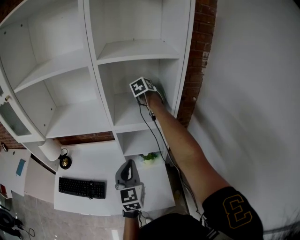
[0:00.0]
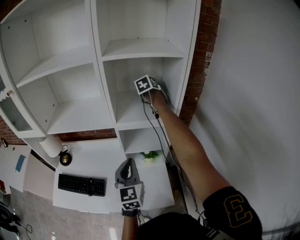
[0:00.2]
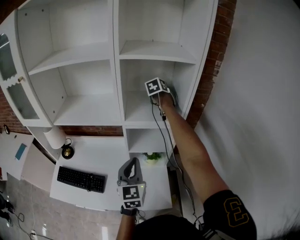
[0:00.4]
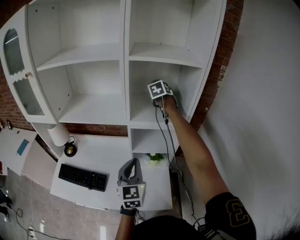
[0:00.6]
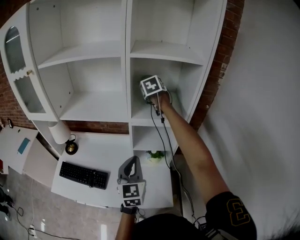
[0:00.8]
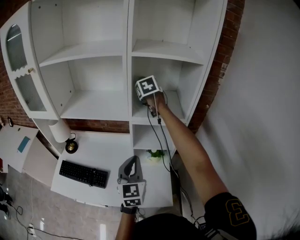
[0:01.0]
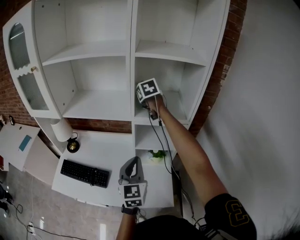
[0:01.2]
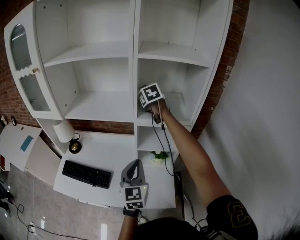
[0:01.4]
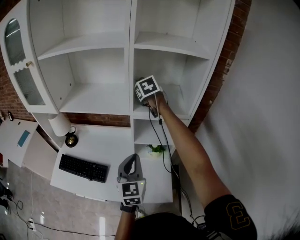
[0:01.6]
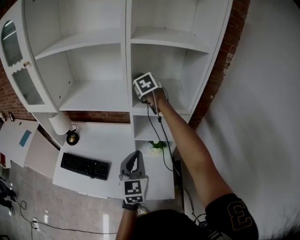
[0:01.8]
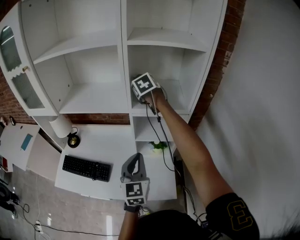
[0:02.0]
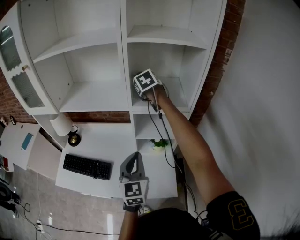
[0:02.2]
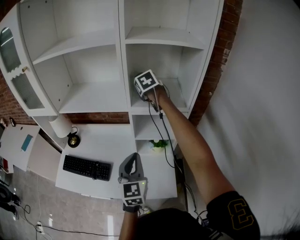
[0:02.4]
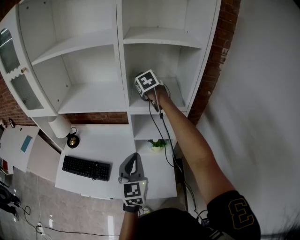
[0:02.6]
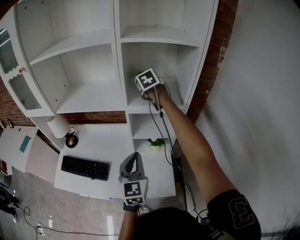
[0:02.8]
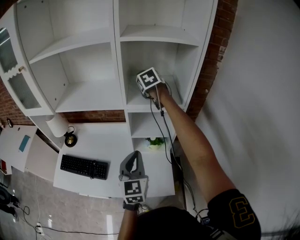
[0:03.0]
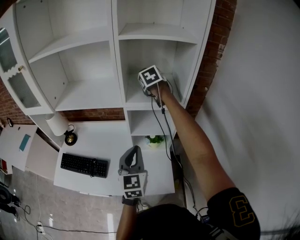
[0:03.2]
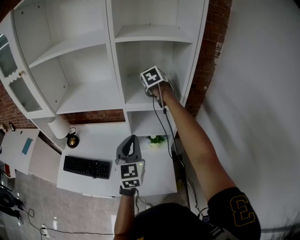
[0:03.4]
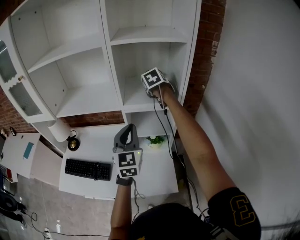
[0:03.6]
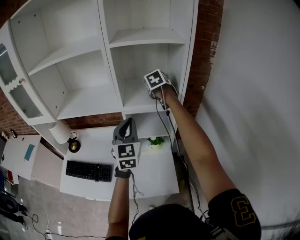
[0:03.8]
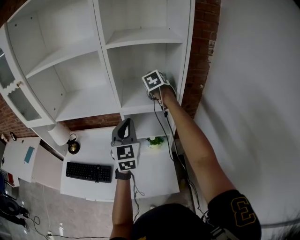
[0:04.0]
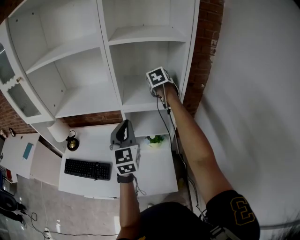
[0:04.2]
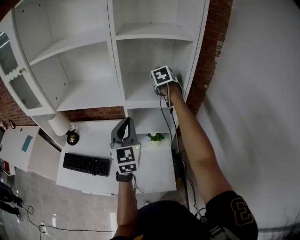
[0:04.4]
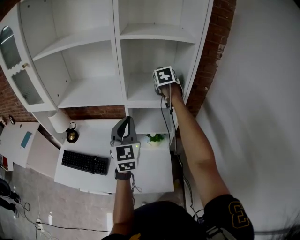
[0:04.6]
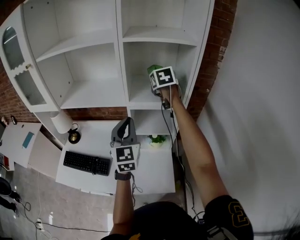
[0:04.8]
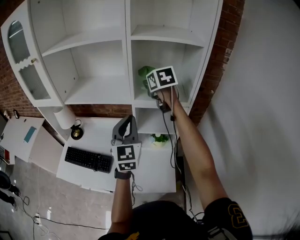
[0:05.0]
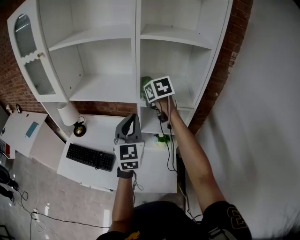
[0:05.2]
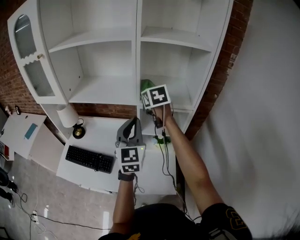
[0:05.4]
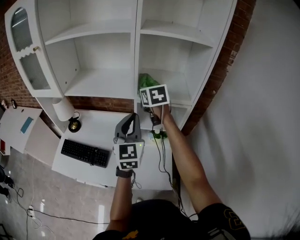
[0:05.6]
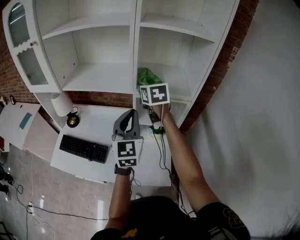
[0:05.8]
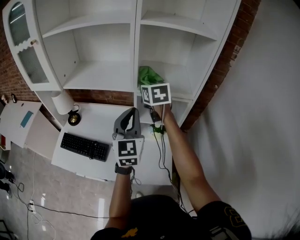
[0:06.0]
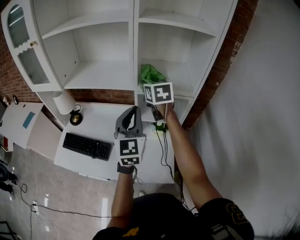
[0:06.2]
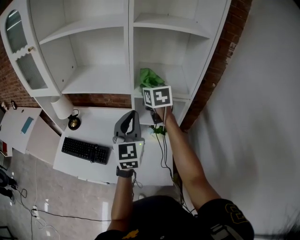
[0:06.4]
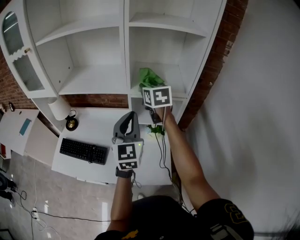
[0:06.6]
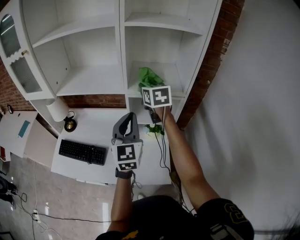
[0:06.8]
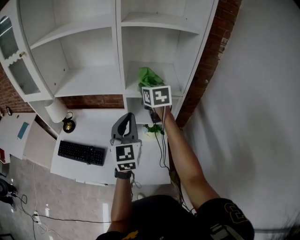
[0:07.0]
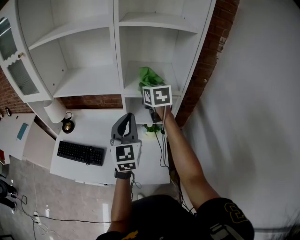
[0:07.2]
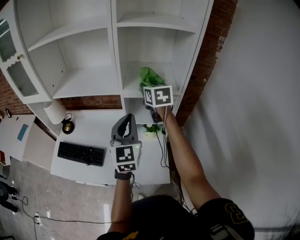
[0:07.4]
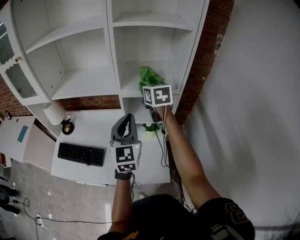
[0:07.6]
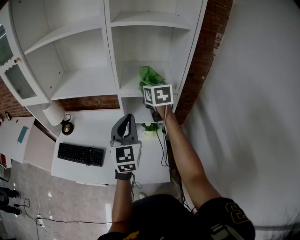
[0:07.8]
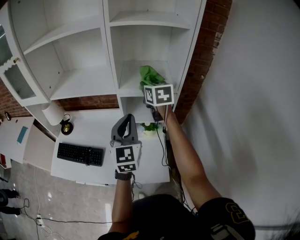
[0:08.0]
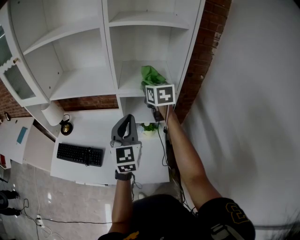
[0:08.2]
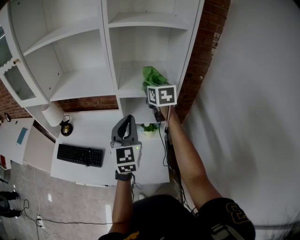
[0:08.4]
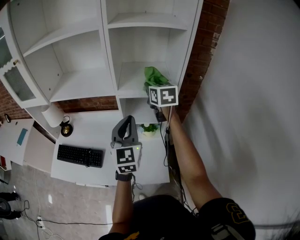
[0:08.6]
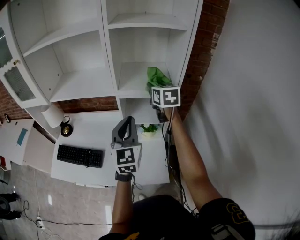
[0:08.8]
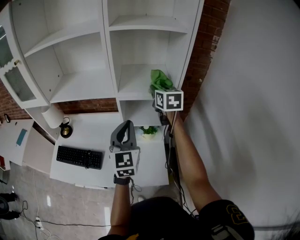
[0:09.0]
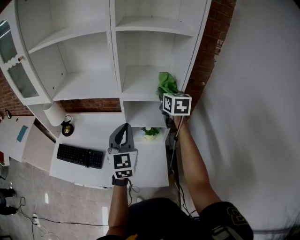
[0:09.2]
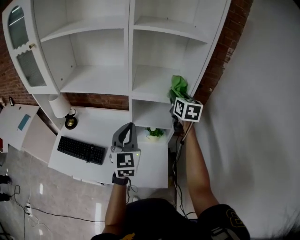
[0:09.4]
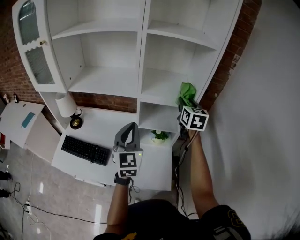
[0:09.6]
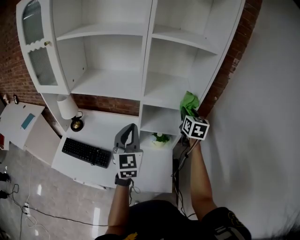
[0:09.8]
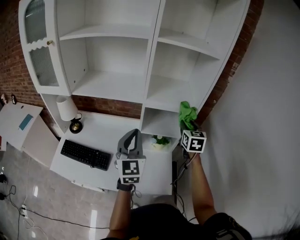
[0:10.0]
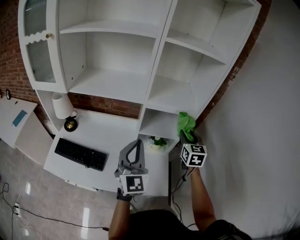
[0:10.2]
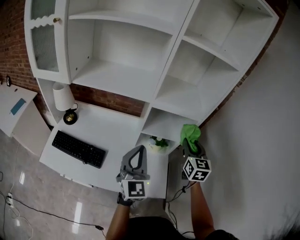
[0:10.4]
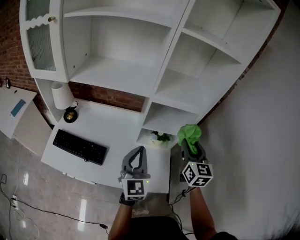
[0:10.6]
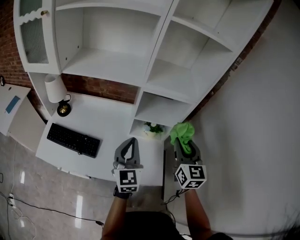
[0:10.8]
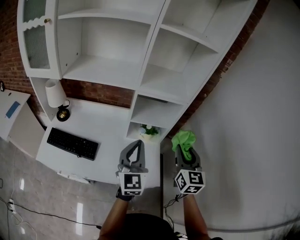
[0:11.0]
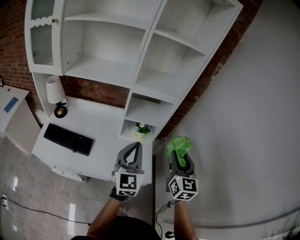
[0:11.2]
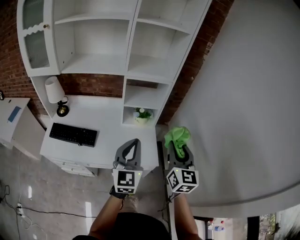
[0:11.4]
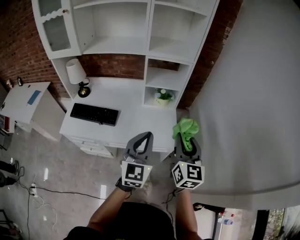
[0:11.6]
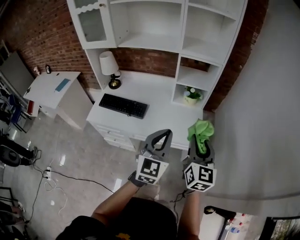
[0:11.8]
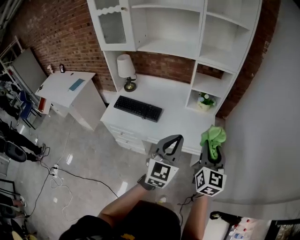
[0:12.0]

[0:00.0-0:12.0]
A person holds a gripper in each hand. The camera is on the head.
0:00.0 to 0:01.6: The right gripper shifts roughly 15 cm to the left and backward, and swivels some 20 degrees.
0:01.6 to 0:03.0: The right gripper travels to the right by roughly 5 cm.
0:03.0 to 0:04.4: The right gripper shifts some 10 cm to the right. The left gripper travels upward and forward by some 10 cm.
0:04.4 to 0:06.0: The right gripper shifts approximately 20 cm to the left and backward, and changes its angle by approximately 30 degrees.
0:06.0 to 0:07.6: The right gripper goes some 10 cm to the right.
0:07.6 to 0:09.0: The right gripper is displaced to the right by approximately 5 cm.
0:09.0 to 0:10.4: The left gripper goes roughly 10 cm to the left and backward. The right gripper heads backward and downward, covering about 15 cm.
0:10.4 to 0:12.0: The two grippers go about 35 cm backward.

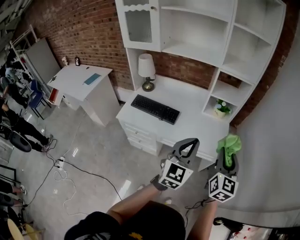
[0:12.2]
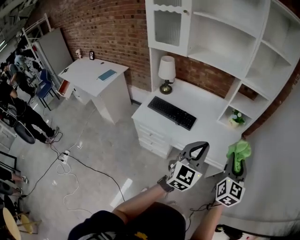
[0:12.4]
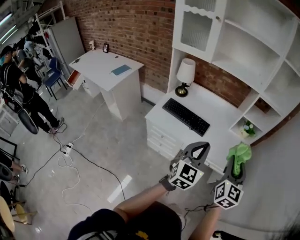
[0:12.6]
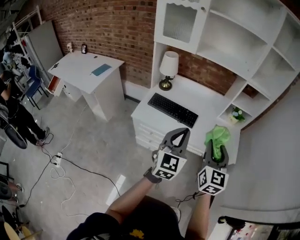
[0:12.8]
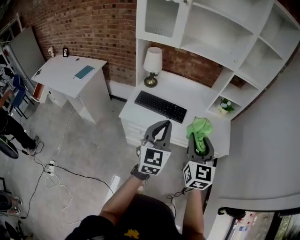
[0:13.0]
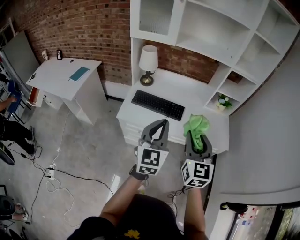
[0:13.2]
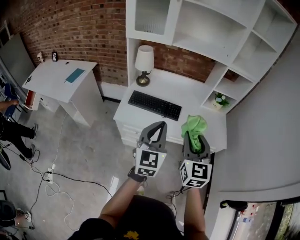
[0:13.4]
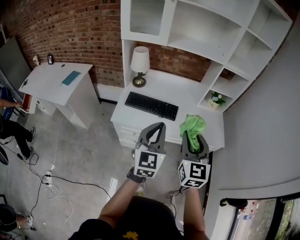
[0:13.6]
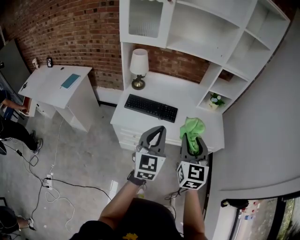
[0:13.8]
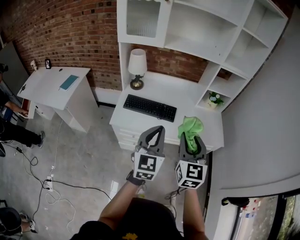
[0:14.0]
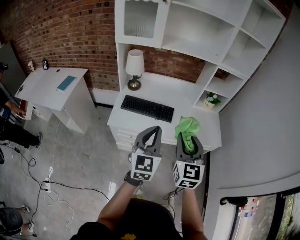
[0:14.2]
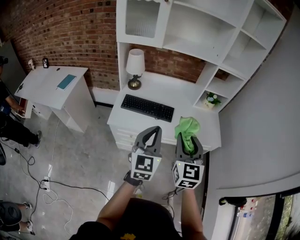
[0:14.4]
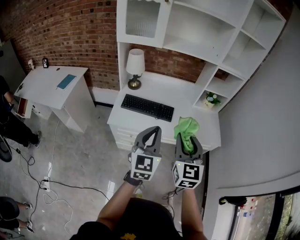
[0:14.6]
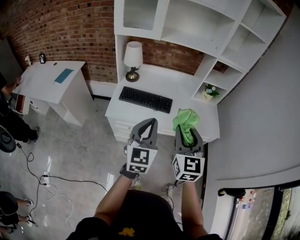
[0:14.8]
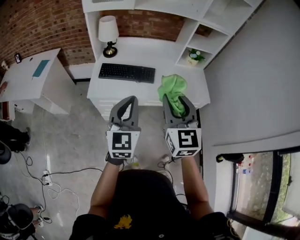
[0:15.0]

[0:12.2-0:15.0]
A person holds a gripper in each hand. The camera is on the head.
0:12.2 to 0:13.6: The grippers both shift to the left by roughly 35 cm.
0:13.6 to 0:15.0: The right gripper moves roughly 5 cm. Meanwhile the left gripper shifts roughly 5 cm to the left.

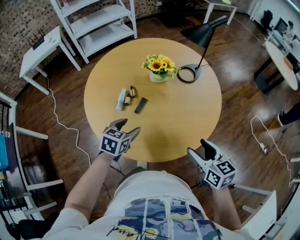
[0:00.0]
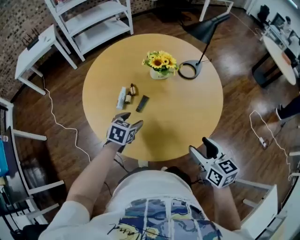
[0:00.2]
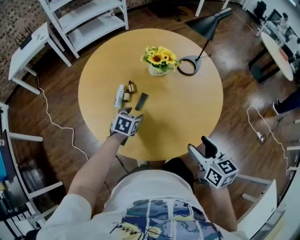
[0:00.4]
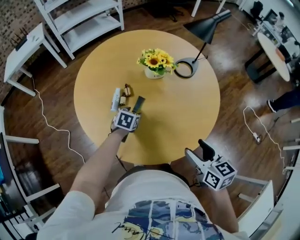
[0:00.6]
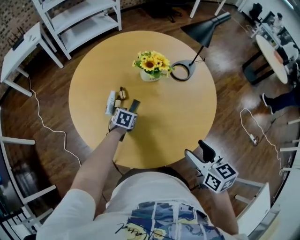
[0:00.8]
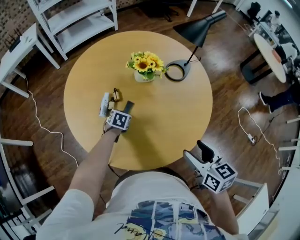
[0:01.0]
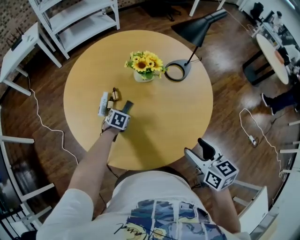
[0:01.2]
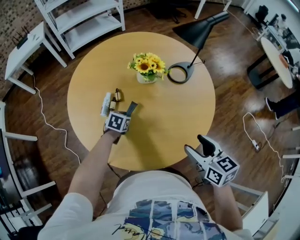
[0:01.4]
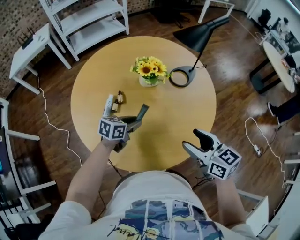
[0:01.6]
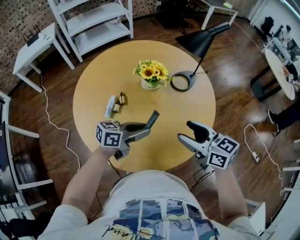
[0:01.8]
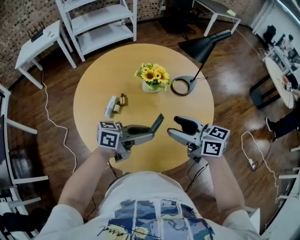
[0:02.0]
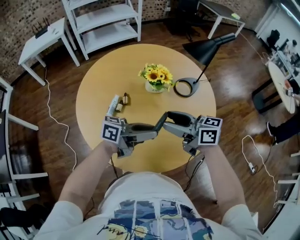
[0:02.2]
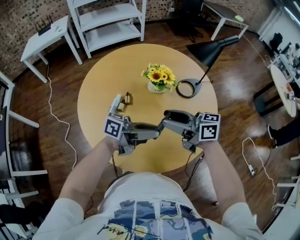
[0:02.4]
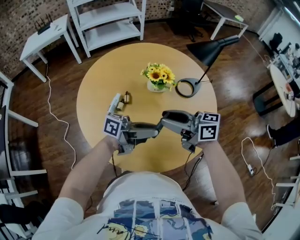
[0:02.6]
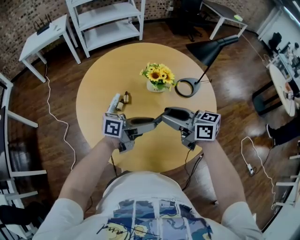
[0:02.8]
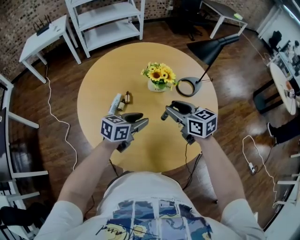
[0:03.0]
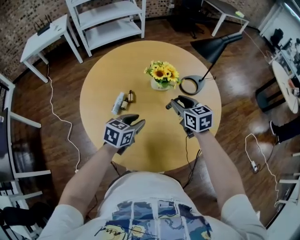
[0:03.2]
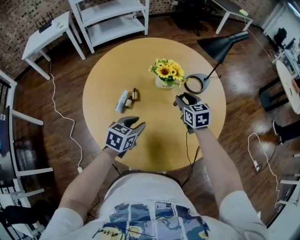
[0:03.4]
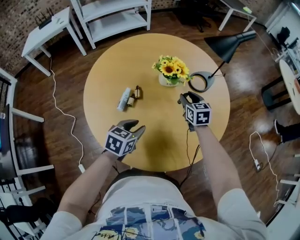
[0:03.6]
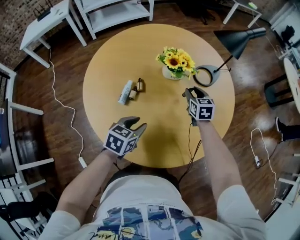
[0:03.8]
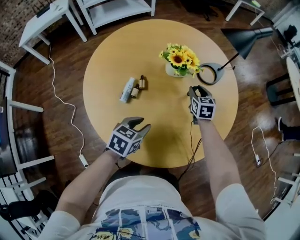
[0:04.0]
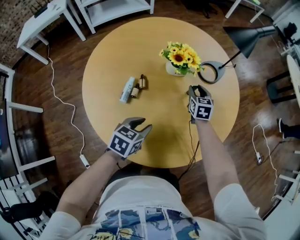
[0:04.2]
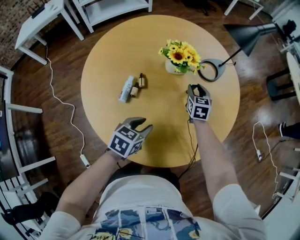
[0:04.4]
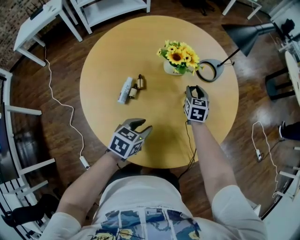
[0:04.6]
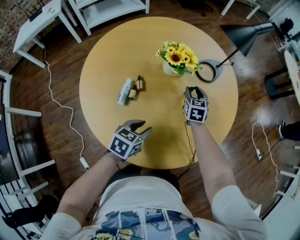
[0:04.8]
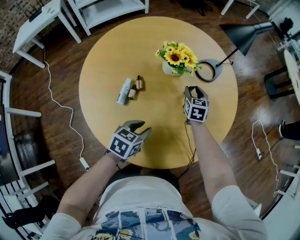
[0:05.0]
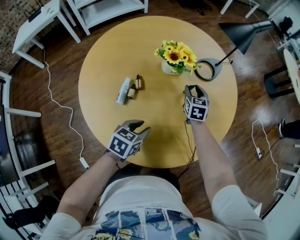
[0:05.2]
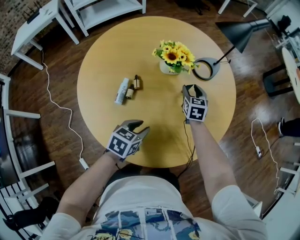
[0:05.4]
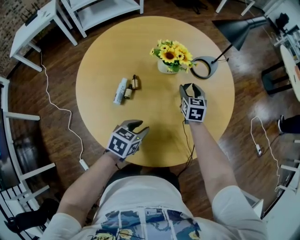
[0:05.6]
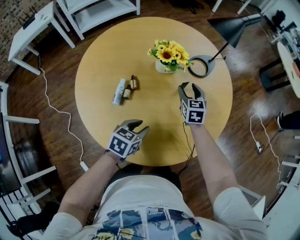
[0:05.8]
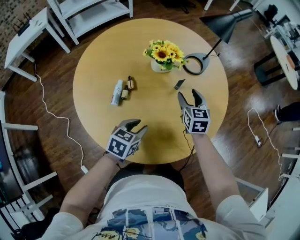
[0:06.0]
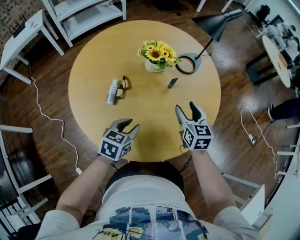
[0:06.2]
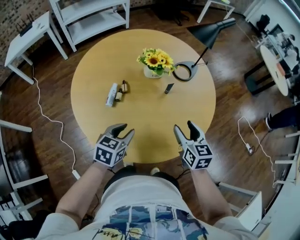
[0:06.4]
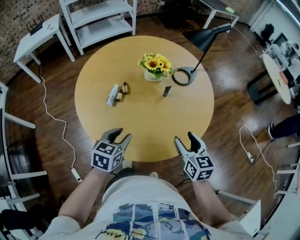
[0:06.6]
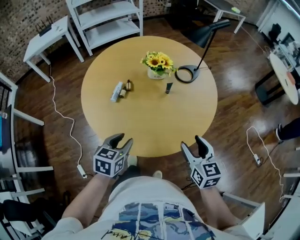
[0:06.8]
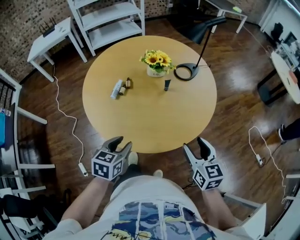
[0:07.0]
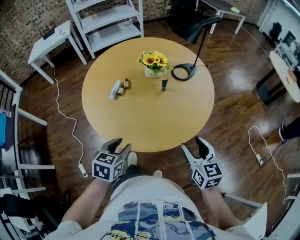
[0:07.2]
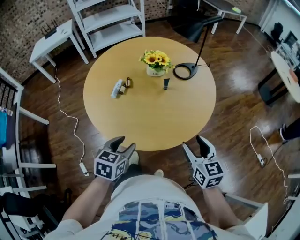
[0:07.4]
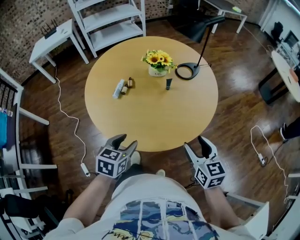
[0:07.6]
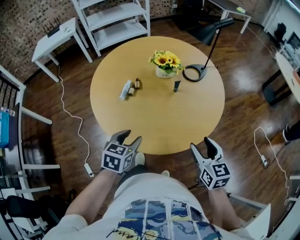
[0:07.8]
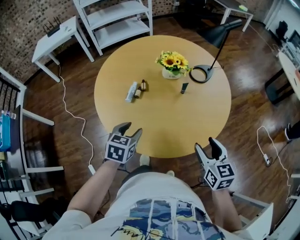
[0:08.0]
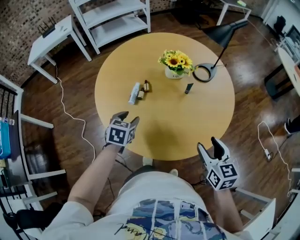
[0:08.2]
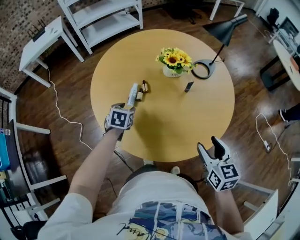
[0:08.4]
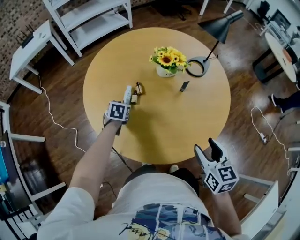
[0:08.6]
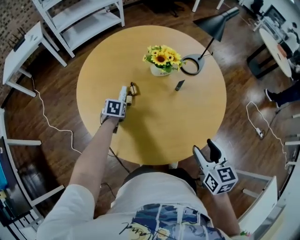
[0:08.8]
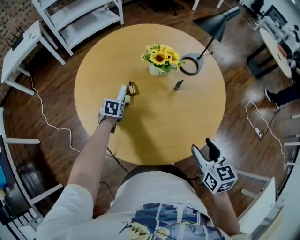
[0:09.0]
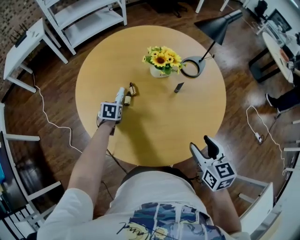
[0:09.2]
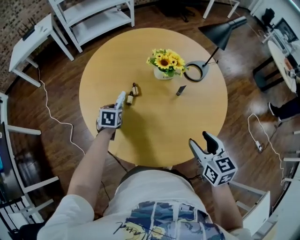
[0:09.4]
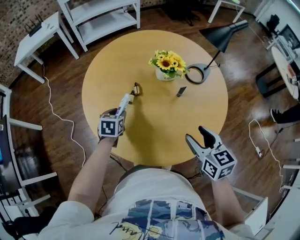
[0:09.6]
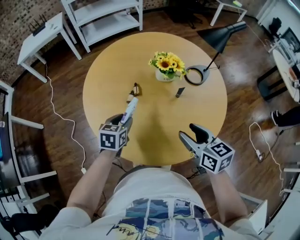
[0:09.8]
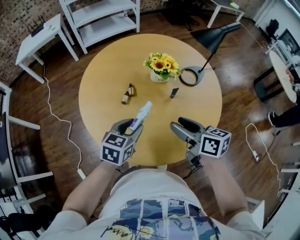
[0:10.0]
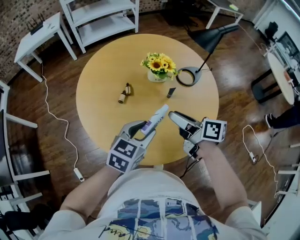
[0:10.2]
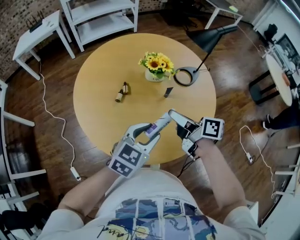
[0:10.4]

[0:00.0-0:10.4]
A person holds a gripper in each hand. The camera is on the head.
0:00.0 to 0:01.4: The left gripper travels downward and forward by some 20 cm, and closes its fingers. The right gripper goes about 10 cm forward.
0:01.4 to 0:03.0: The left gripper shifts about 15 cm upward, and tips its fingers upward by roughly 30 degrees. The right gripper ends up about 20 cm from where it was, swivels approximately 20 degrees, and closes.
0:03.0 to 0:04.4: The right gripper goes roughly 25 cm downward and forward, and rotates roughly 40 degrees. The left gripper shifts some 10 cm downward and to the left, and rotates some 20 degrees.
0:04.4 to 0:06.0: The right gripper is displaced backward and upward by about 10 cm, and opens its fingers.
0:06.0 to 0:07.4: The left gripper shifts roughly 25 cm backward, upward and to the right, and swivels some 20 degrees; the right gripper heads backward and to the right, covering approximately 35 cm.
0:07.4 to 0:09.0: The left gripper shifts approximately 50 cm forward, downward and to the left, and turns by some 20 degrees; the right gripper shifts about 15 cm to the left and forward.
0:09.0 to 0:10.4: The left gripper is displaced upward, to the right and backward by approximately 40 cm, and tips its fingers upward by roughly 40 degrees; the right gripper travels forward by roughly 10 cm, and rotates about 60 degrees.
